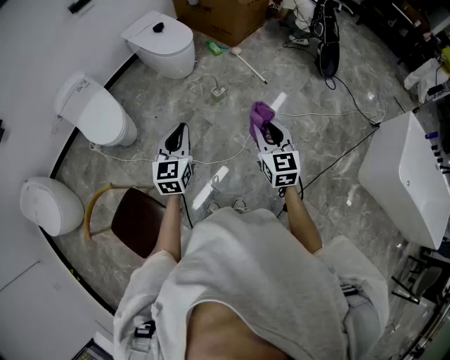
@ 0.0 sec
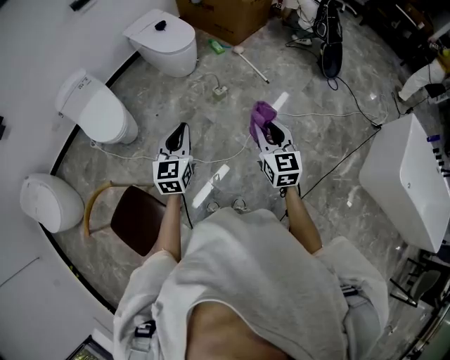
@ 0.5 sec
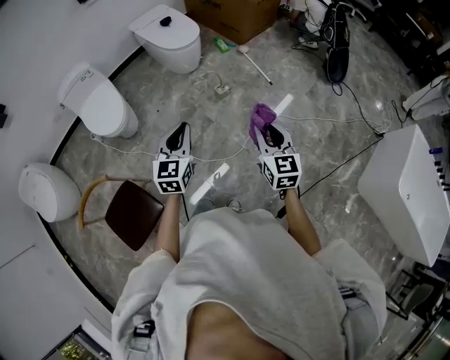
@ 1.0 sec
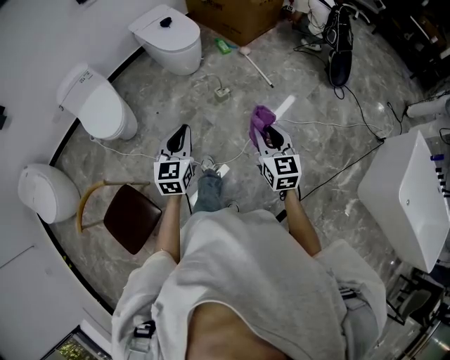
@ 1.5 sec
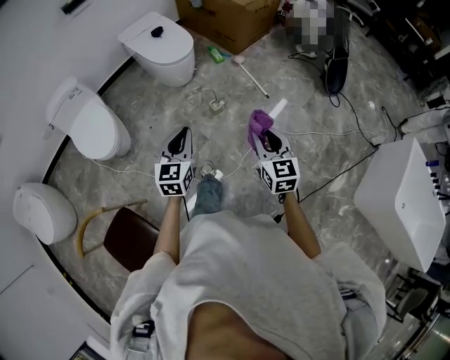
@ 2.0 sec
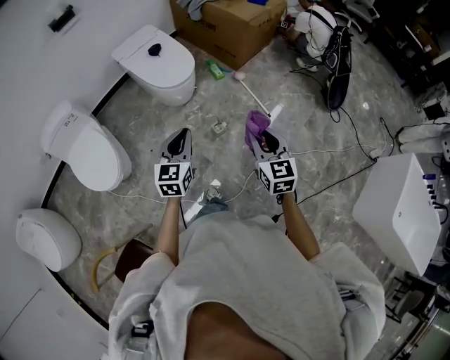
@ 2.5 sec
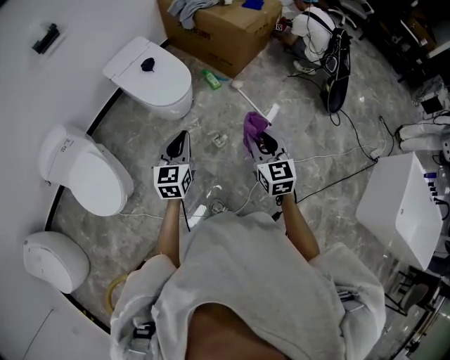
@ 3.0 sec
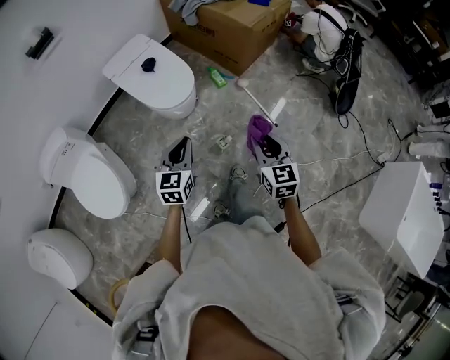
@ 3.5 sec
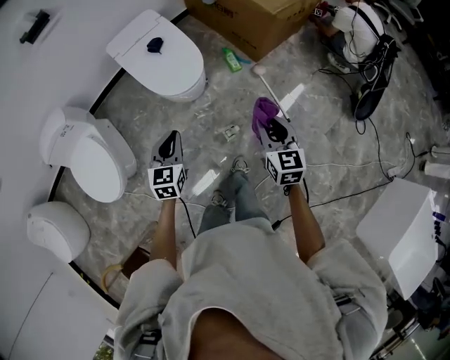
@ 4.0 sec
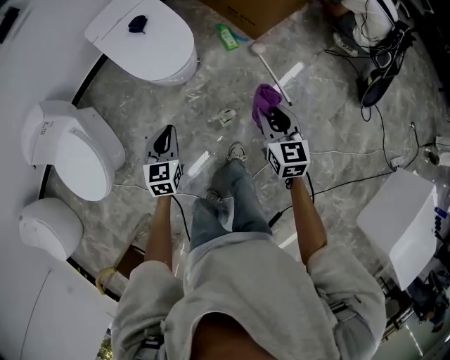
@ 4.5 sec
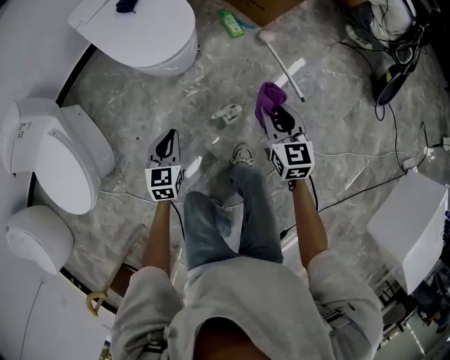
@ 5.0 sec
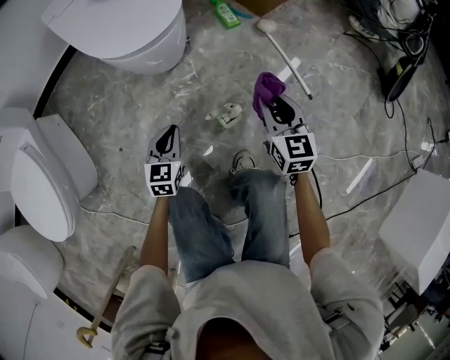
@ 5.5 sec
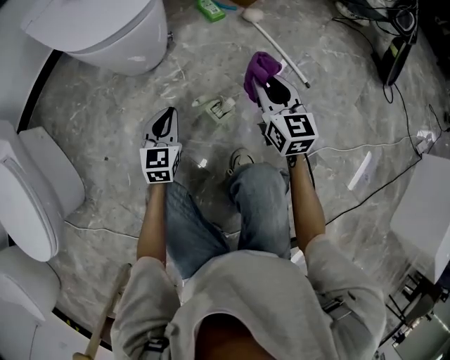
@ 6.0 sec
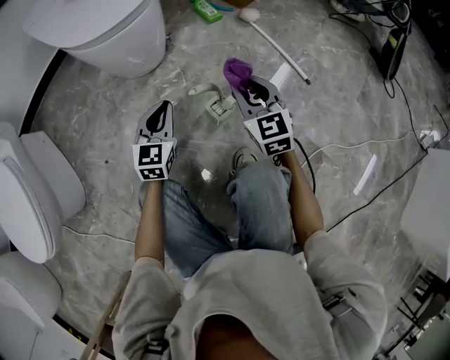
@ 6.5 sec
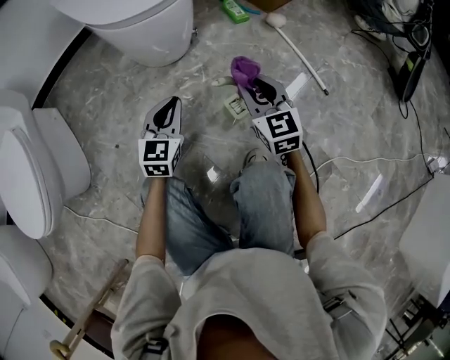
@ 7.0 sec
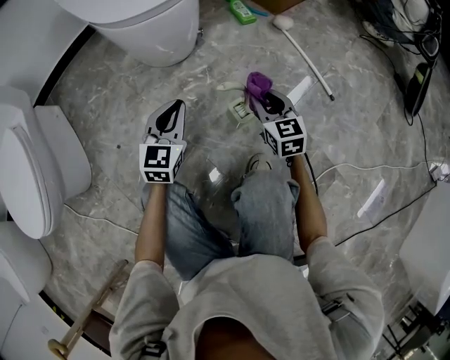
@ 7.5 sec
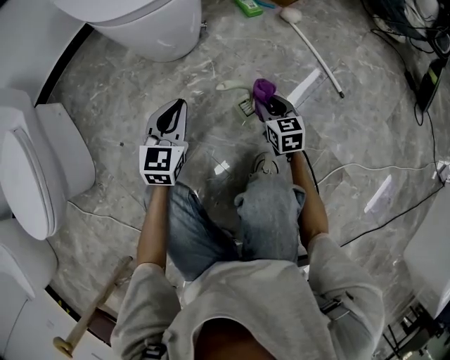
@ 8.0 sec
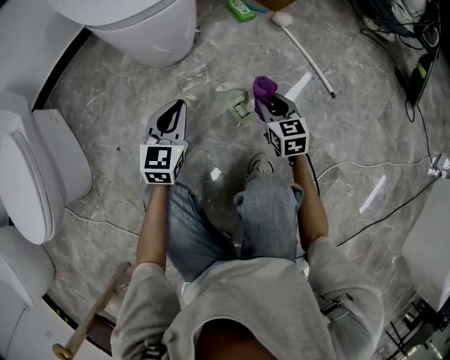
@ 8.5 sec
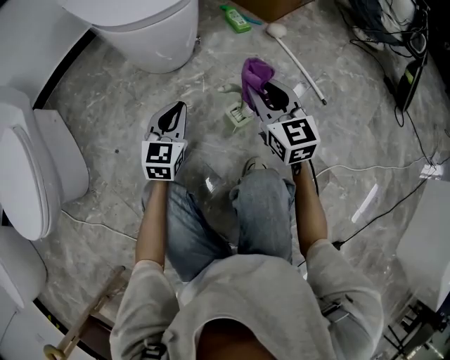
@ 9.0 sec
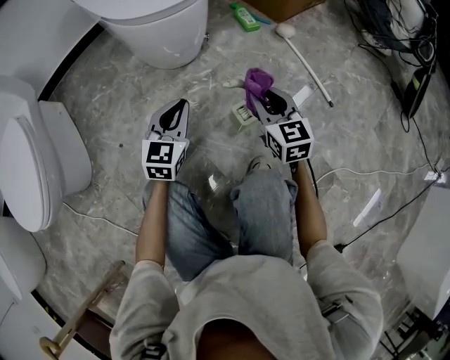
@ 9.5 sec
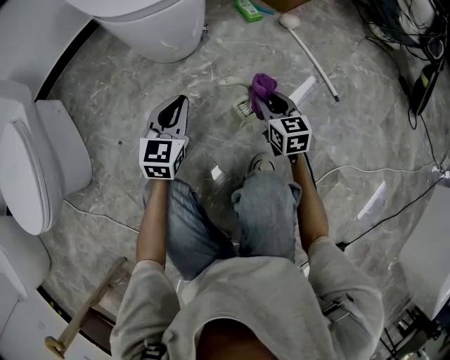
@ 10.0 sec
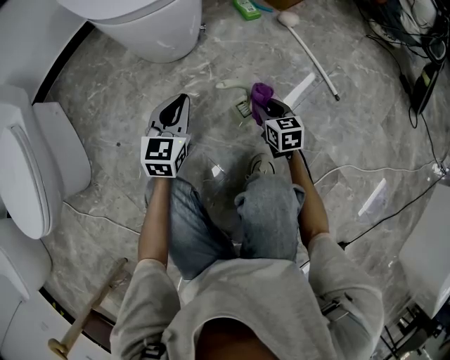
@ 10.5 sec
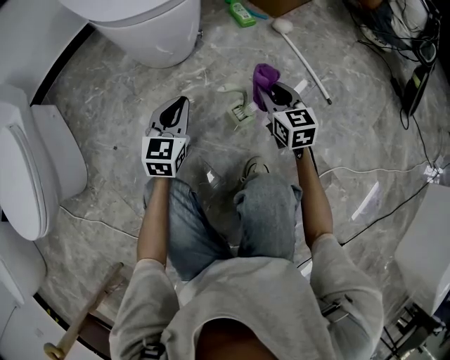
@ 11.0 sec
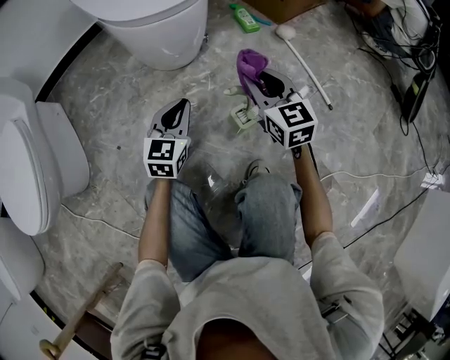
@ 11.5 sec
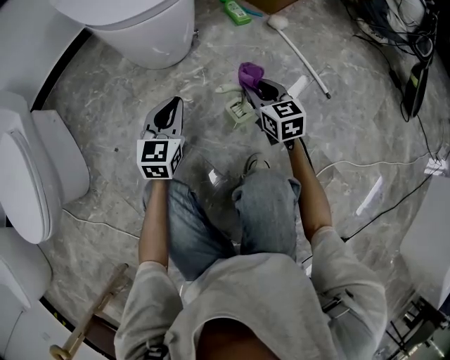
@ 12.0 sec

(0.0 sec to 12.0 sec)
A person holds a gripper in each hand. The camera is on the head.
0.0 sec - 2.0 sec: The grippers both shift forward by roughly 15 cm.
2.0 sec - 4.0 sec: The two grippers go roughly 40 cm forward.
4.0 sec - 6.0 sec: Both grippers travel together downward, approximately 50 cm.
6.0 sec - 8.0 sec: The right gripper moves downward, roughly 20 cm.
8.0 sec - 10.0 sec: The right gripper goes upward and returns, roughly 20 cm each way.
10.0 sec - 12.0 sec: The right gripper goes up and down, roughly 20 cm each way, reversing 2 times.

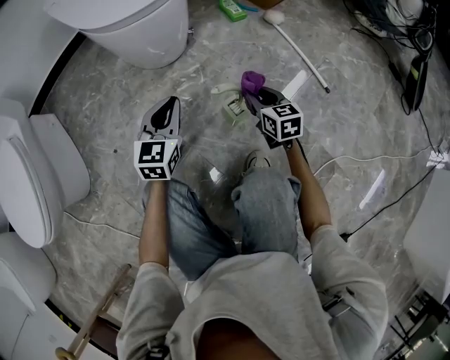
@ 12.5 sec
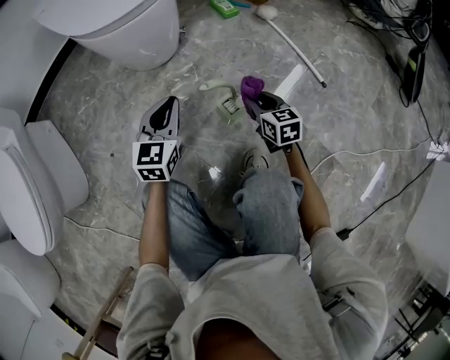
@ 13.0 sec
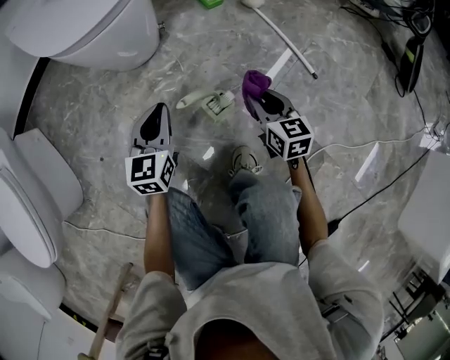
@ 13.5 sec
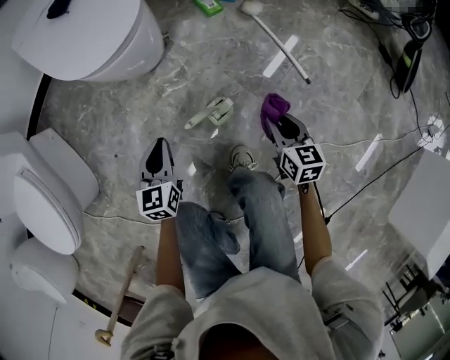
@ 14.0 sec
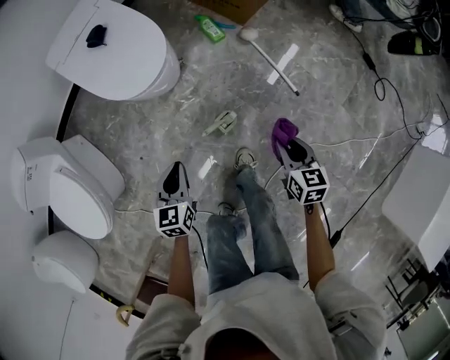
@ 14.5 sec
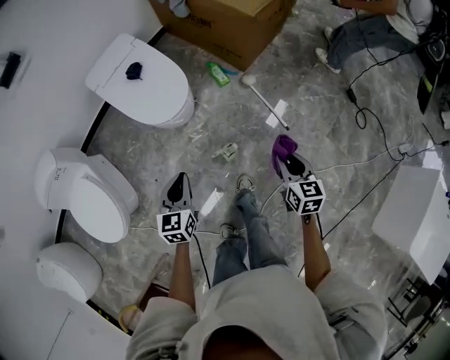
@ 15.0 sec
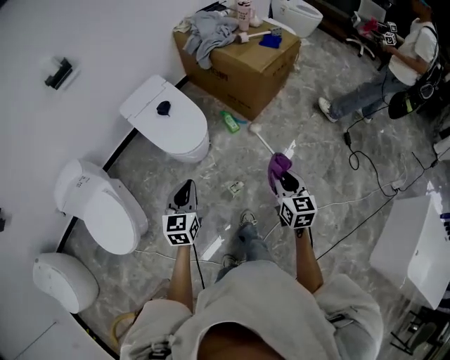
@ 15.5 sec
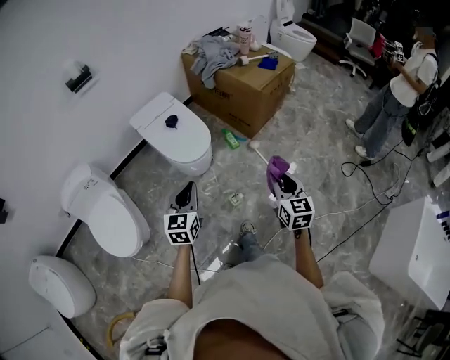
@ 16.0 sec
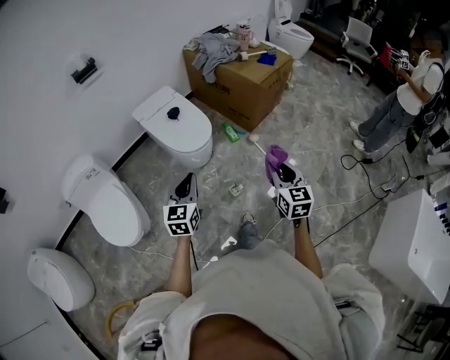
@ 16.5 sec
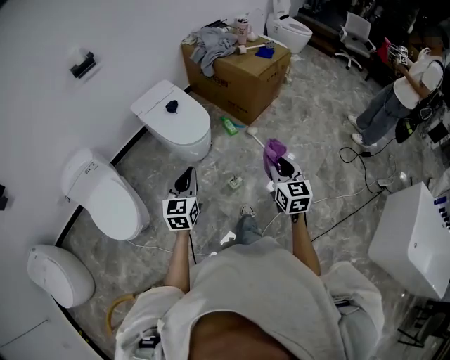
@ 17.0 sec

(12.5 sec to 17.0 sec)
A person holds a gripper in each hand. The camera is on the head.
12.5 sec - 14.5 sec: The right gripper shifts roughly 35 cm upward and to the right, while the left gripper is displaced upward by about 25 cm, and swivels about 20 degrees.
14.5 sec - 17.0 sec: The two grippers go about 40 cm upward. The right gripper swivels approximately 30 degrees, while the left gripper changes its angle by about 20 degrees.

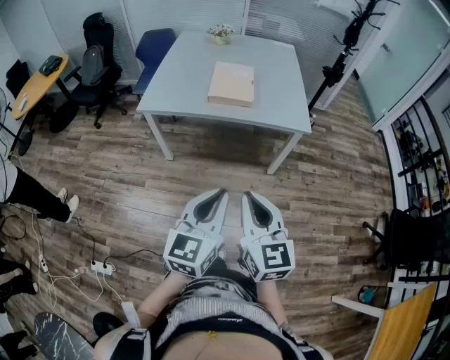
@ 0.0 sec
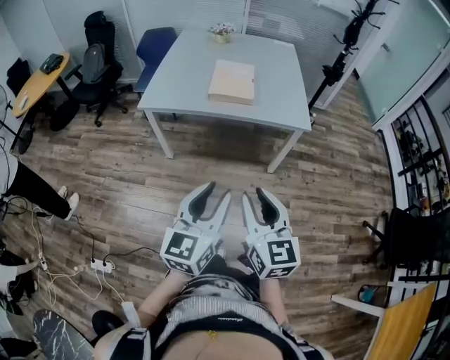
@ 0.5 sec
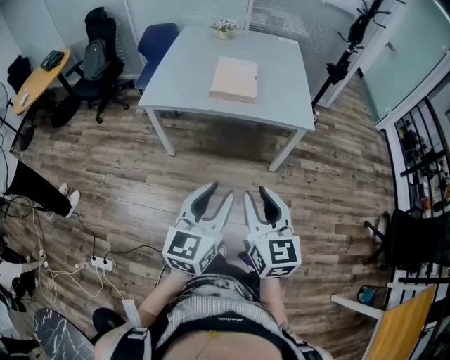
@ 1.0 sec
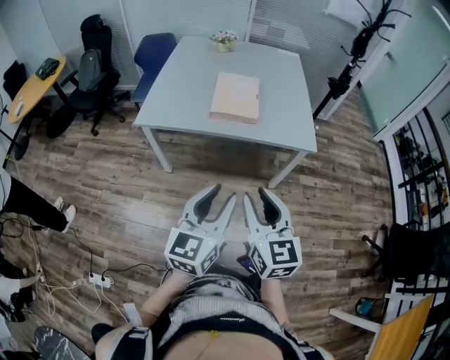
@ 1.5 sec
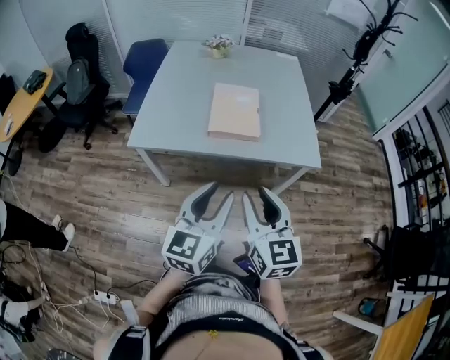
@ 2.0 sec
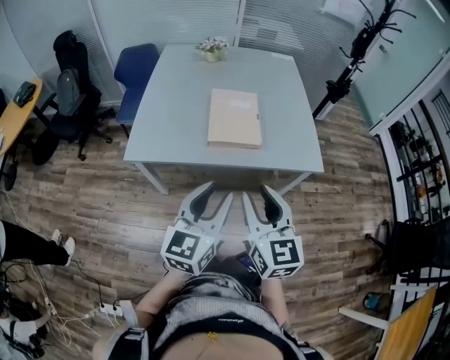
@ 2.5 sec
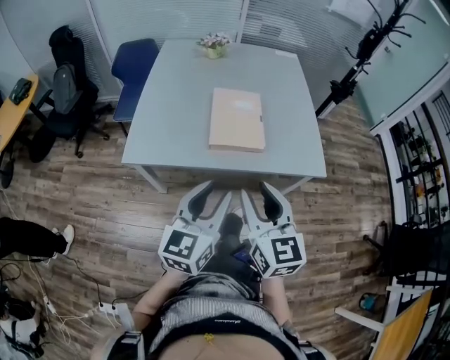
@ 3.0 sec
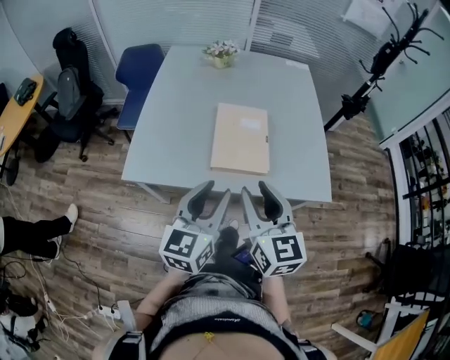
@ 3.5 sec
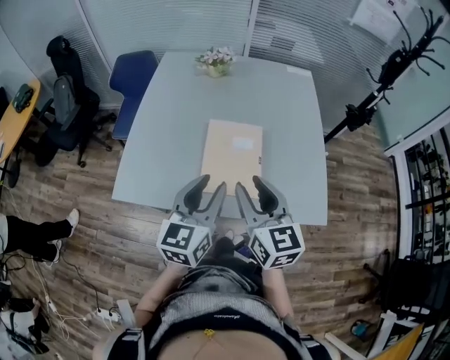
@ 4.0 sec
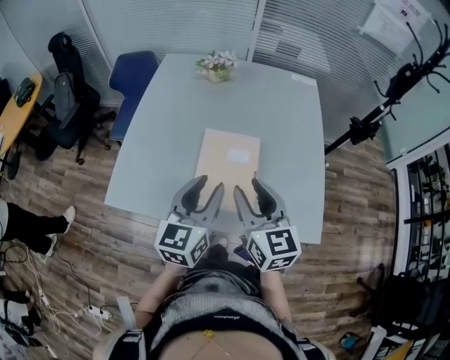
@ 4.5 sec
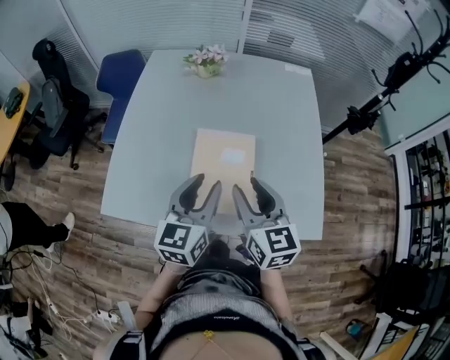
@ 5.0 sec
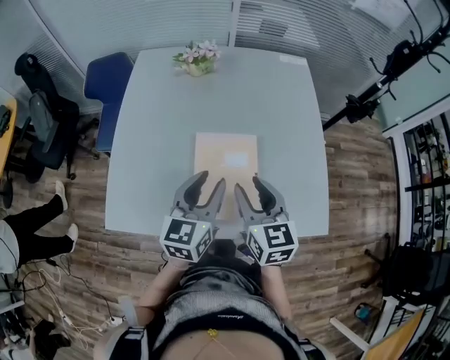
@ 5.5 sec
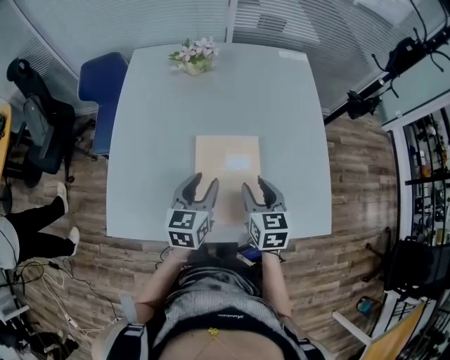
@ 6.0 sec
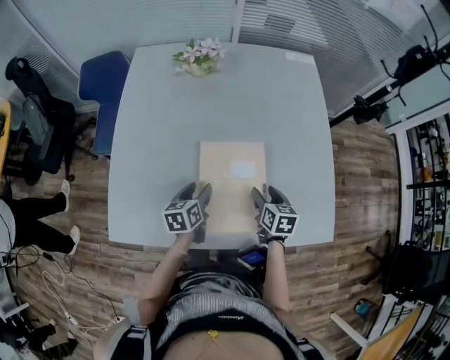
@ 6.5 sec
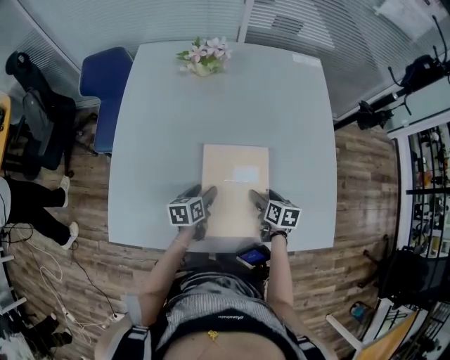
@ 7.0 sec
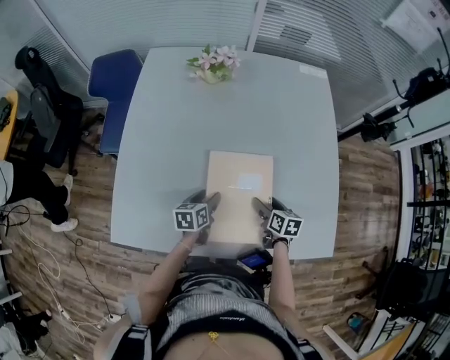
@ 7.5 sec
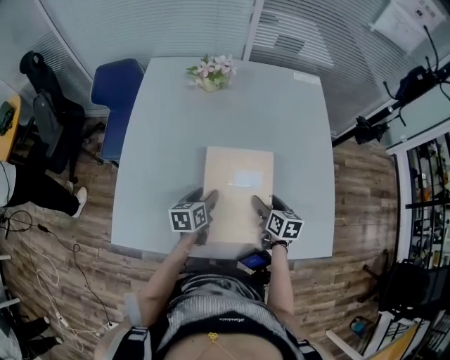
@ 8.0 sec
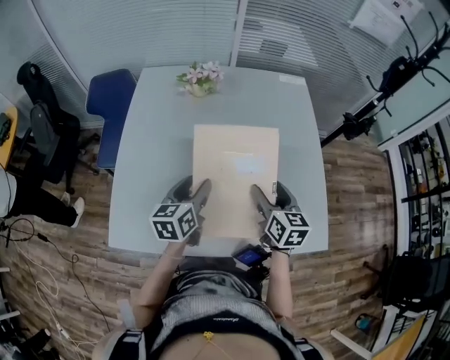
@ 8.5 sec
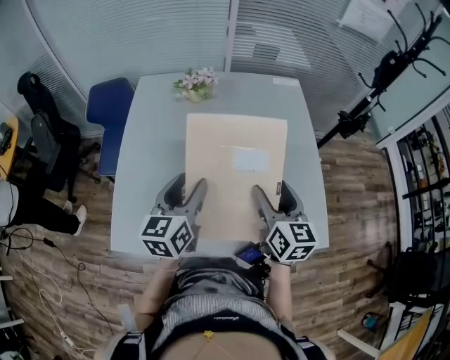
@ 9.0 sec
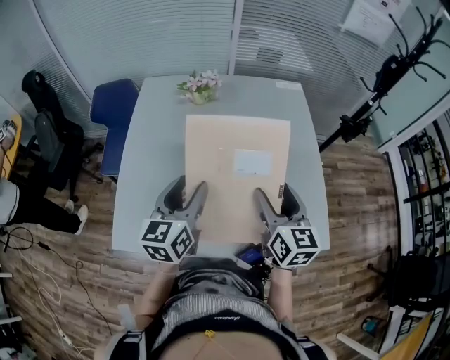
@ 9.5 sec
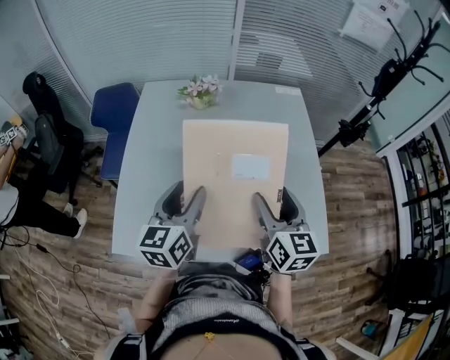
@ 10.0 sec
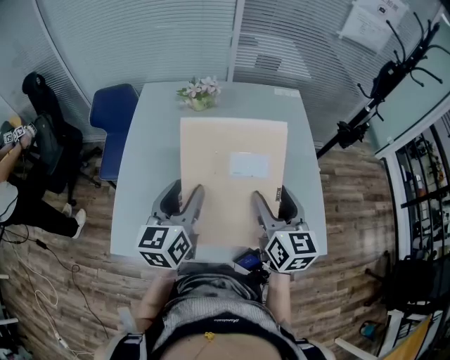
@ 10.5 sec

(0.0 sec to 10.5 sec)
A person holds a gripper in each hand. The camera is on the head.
0.0 sec - 2.0 sec: Both grippers travel together forward, about 25 cm. The left gripper opens up. The right gripper opens.
2.0 sec - 4.0 sec: The two grippers go about 35 cm forward.
4.0 sec - 6.5 sec: The grippers both shift downward and forward by approximately 35 cm. The left gripper tilts its fingers some 30 degrees downward. The right gripper tips its fingers downward by about 30 degrees.
6.5 sec - 8.5 sec: Both grippers travel together upward, approximately 15 cm. The right gripper turns by about 20 degrees.
8.5 sec - 10.5 sec: Both grippers travel together upward, roughly 10 cm.
